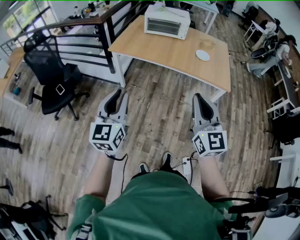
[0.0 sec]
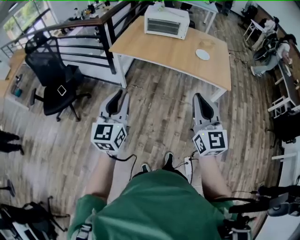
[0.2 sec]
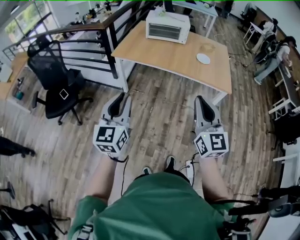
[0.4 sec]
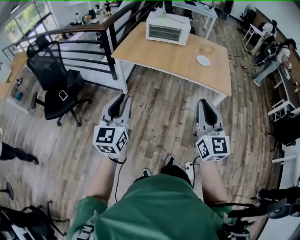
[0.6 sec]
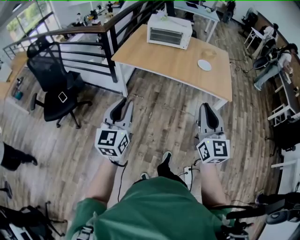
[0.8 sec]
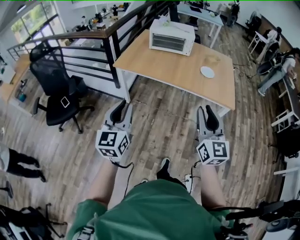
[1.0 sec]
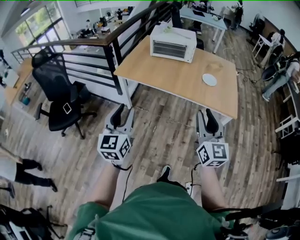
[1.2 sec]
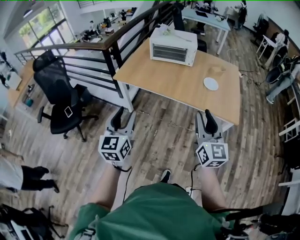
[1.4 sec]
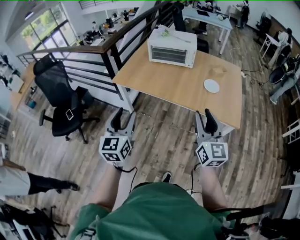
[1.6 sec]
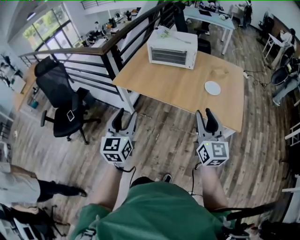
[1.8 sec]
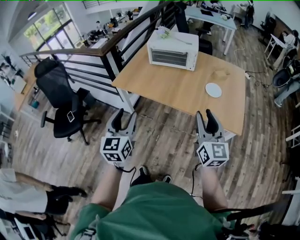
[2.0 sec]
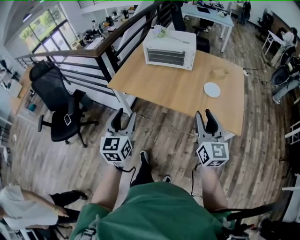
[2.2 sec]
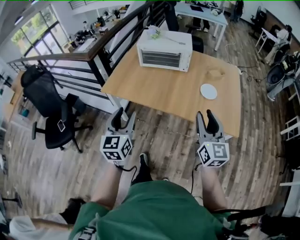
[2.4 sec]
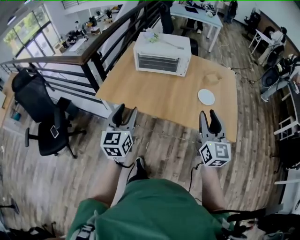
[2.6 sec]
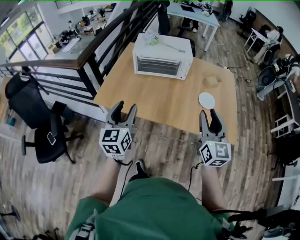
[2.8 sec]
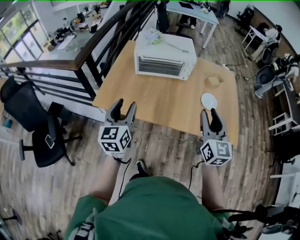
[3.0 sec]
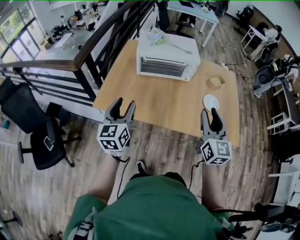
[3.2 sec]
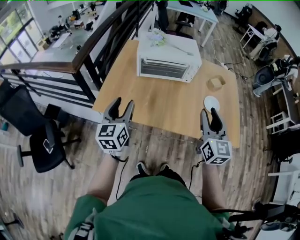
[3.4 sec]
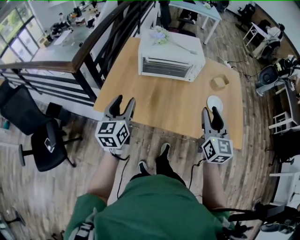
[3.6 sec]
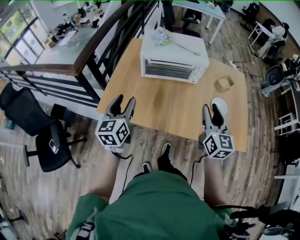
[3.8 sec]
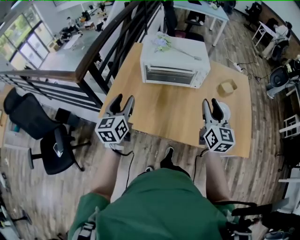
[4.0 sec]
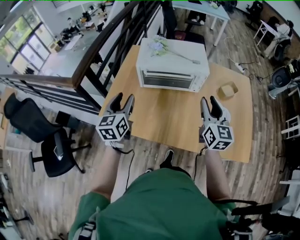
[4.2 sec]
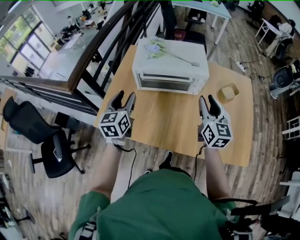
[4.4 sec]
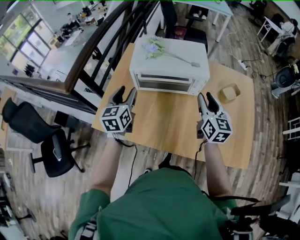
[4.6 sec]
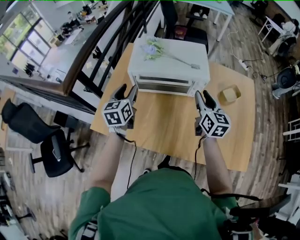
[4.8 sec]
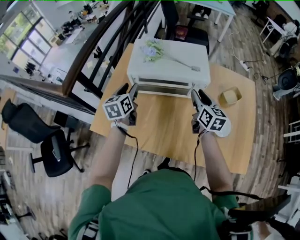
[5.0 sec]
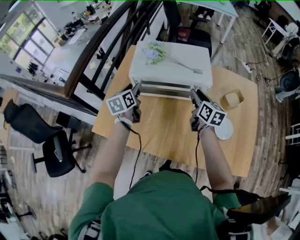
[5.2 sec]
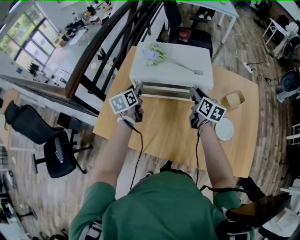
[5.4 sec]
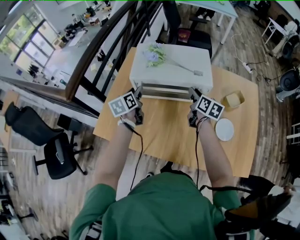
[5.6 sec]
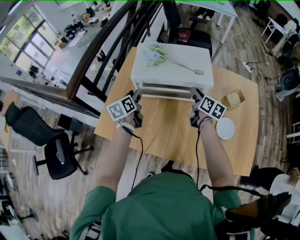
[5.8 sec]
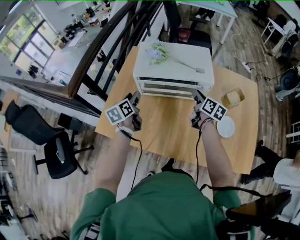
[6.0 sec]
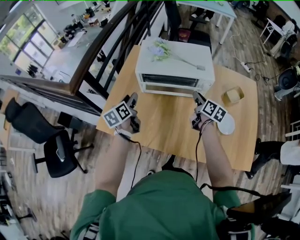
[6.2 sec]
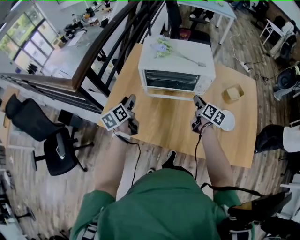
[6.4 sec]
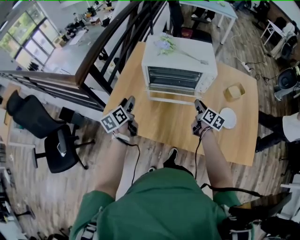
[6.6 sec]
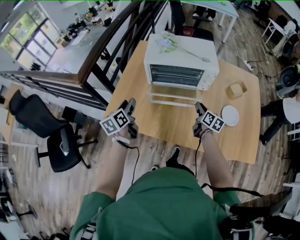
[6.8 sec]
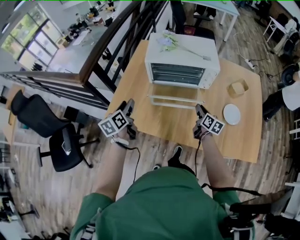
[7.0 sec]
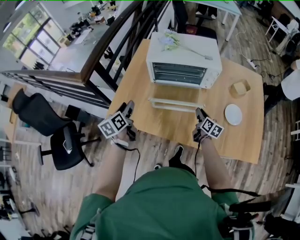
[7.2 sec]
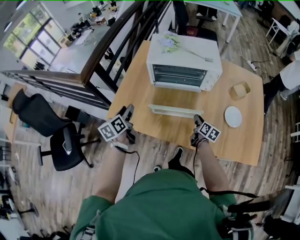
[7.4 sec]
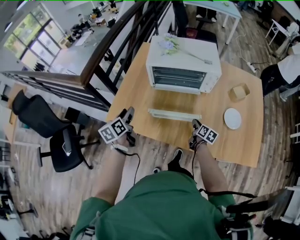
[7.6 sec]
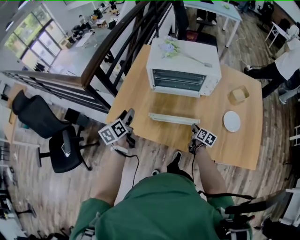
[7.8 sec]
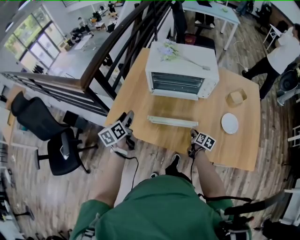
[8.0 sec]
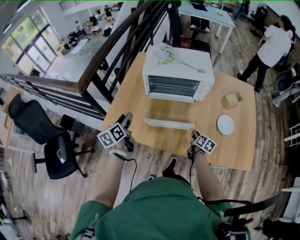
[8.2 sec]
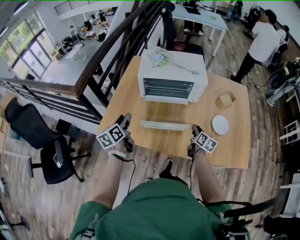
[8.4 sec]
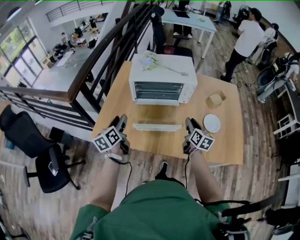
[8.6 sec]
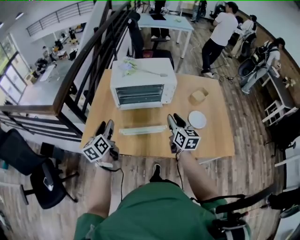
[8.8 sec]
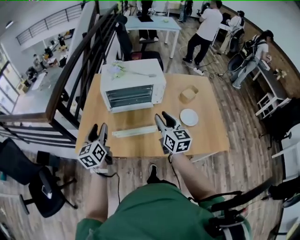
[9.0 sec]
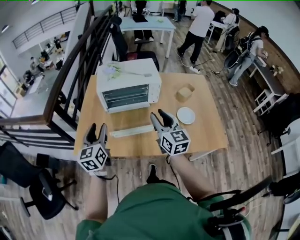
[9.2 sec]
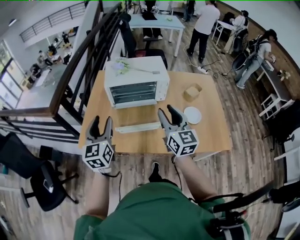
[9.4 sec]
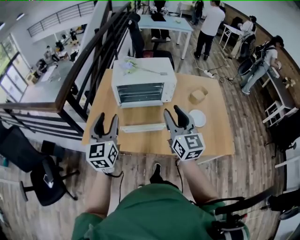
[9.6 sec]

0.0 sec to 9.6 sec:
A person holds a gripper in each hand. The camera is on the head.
0.0 sec to 1.6 sec: The right gripper goes roughly 25 cm forward and to the right, and opens up, while the left gripper moves forward, some 20 cm, and opens.
1.6 sec to 3.2 sec: Both grippers travel together forward, roughly 35 cm.
3.2 sec to 4.8 sec: Both grippers move forward, approximately 30 cm.
4.8 sec to 6.4 sec: The right gripper moves downward, some 10 cm, and changes its angle by about 30 degrees; the left gripper travels to the left, backward and downward by approximately 10 cm, and rotates some 30 degrees.
6.4 sec to 8.0 sec: The left gripper moves backward, some 10 cm; the right gripper shifts some 20 cm downward and backward.
8.0 sec to 9.6 sec: The right gripper moves upward, approximately 40 cm, and angles its fingers upward, by roughly 40 degrees, while the left gripper moves upward and to the right, about 20 cm, and rotates some 40 degrees.

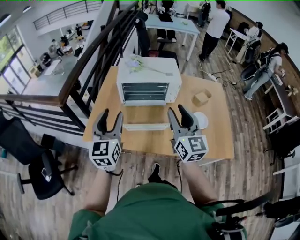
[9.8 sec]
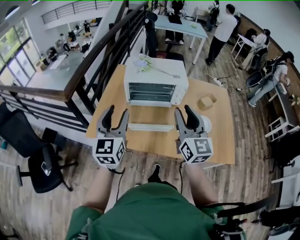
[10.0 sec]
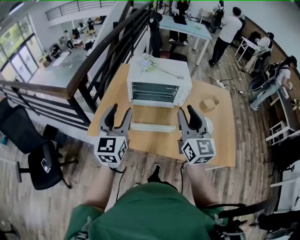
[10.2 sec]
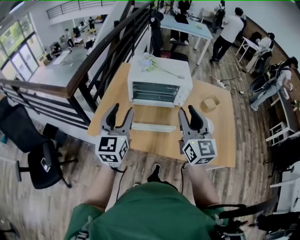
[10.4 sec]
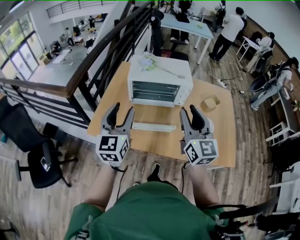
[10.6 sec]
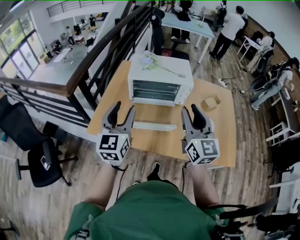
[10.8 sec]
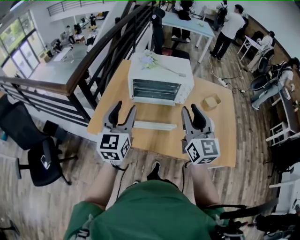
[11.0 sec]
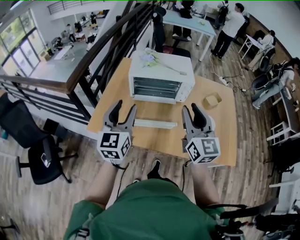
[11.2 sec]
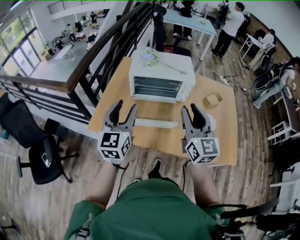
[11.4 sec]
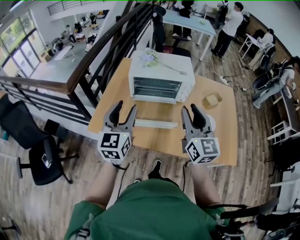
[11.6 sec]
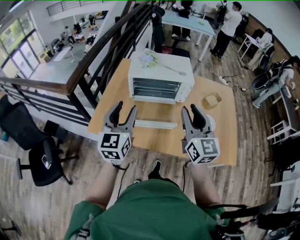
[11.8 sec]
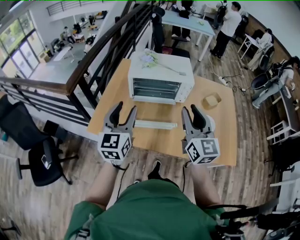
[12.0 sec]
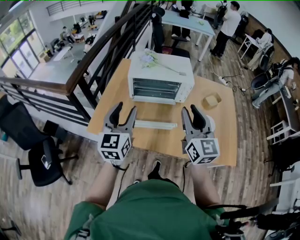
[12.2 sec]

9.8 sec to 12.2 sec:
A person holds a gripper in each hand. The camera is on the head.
9.8 sec to 11.0 sec: There are only small adjustments of the grippers.
11.0 sec to 12.2 sec: Neither gripper changes place.

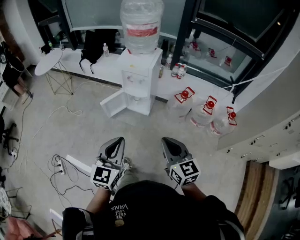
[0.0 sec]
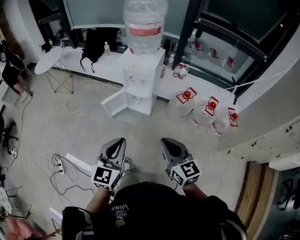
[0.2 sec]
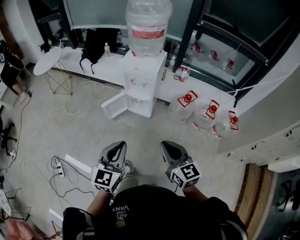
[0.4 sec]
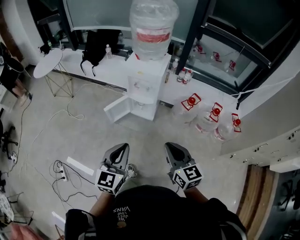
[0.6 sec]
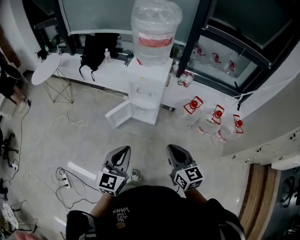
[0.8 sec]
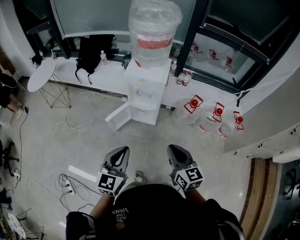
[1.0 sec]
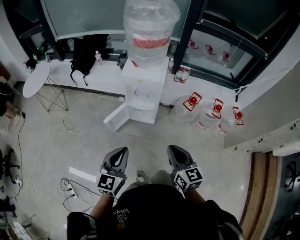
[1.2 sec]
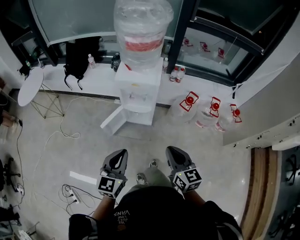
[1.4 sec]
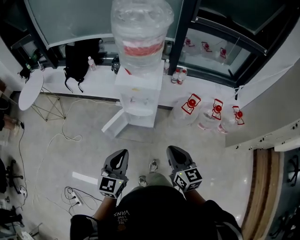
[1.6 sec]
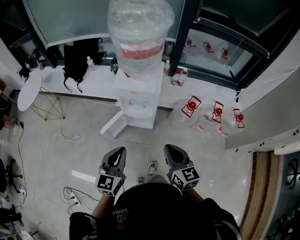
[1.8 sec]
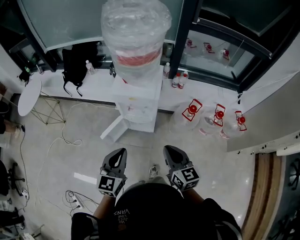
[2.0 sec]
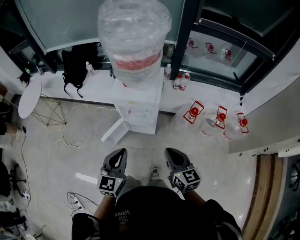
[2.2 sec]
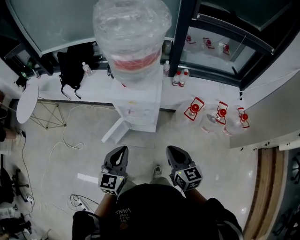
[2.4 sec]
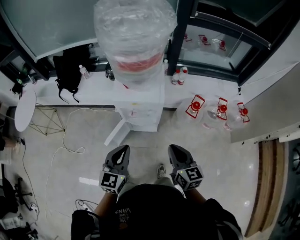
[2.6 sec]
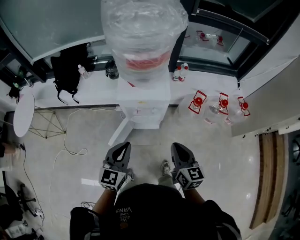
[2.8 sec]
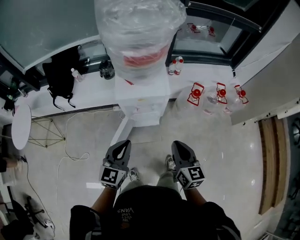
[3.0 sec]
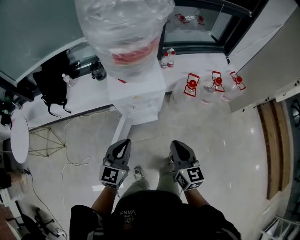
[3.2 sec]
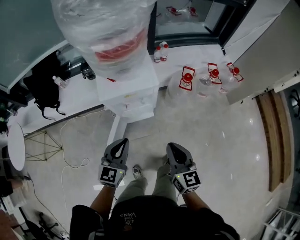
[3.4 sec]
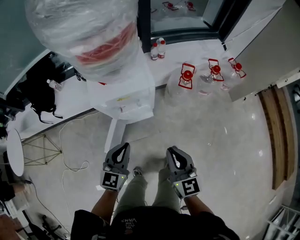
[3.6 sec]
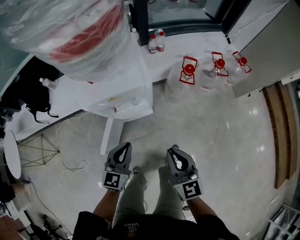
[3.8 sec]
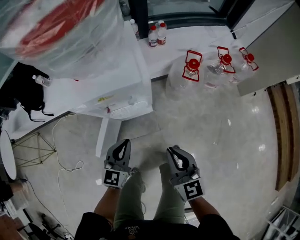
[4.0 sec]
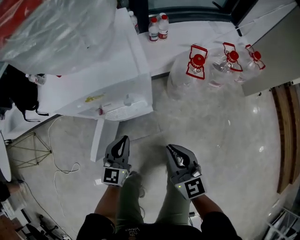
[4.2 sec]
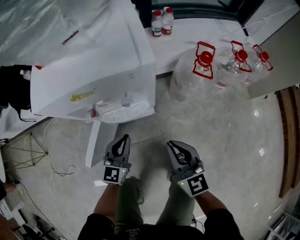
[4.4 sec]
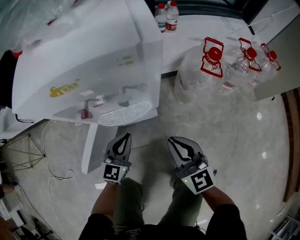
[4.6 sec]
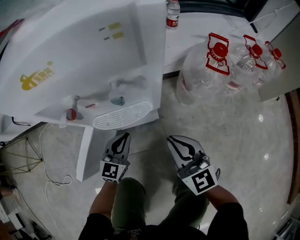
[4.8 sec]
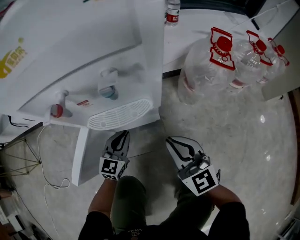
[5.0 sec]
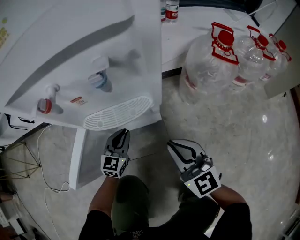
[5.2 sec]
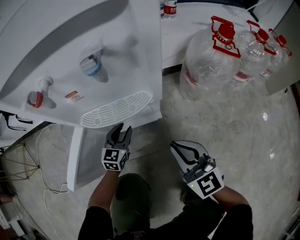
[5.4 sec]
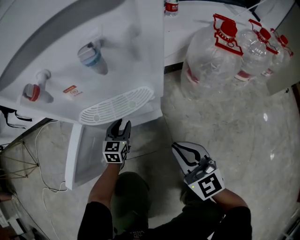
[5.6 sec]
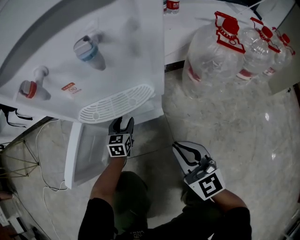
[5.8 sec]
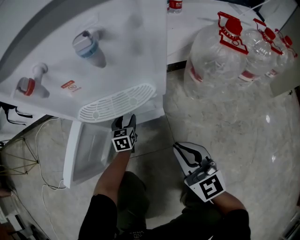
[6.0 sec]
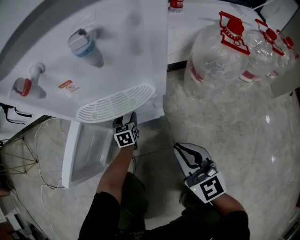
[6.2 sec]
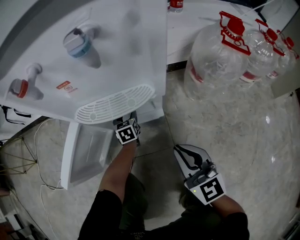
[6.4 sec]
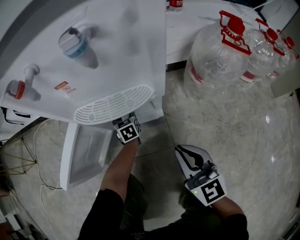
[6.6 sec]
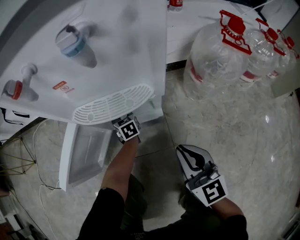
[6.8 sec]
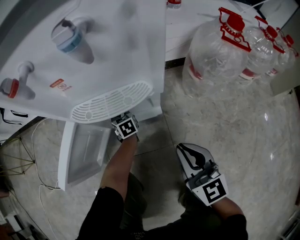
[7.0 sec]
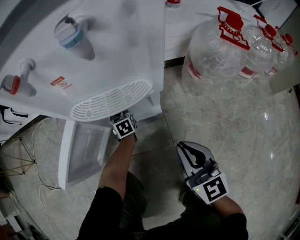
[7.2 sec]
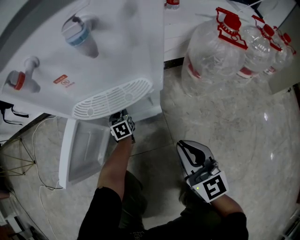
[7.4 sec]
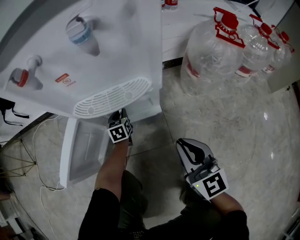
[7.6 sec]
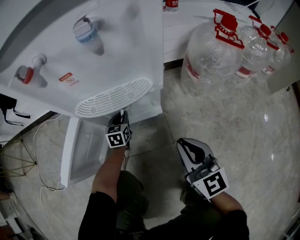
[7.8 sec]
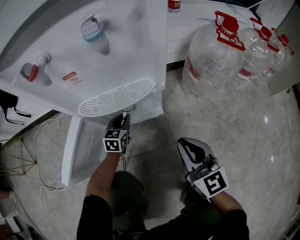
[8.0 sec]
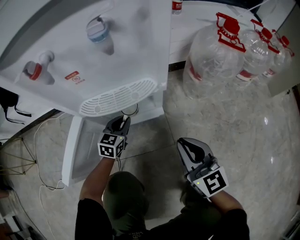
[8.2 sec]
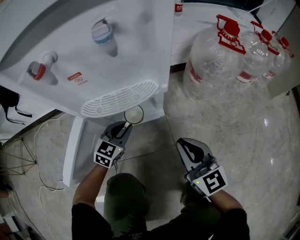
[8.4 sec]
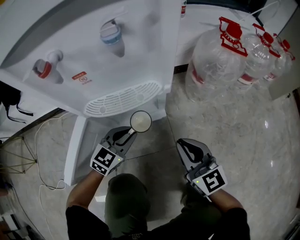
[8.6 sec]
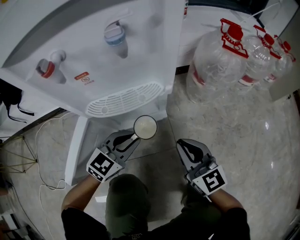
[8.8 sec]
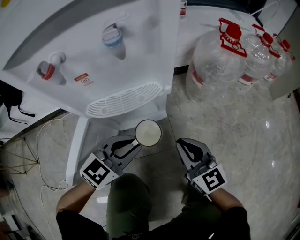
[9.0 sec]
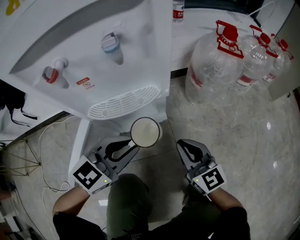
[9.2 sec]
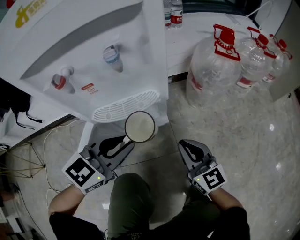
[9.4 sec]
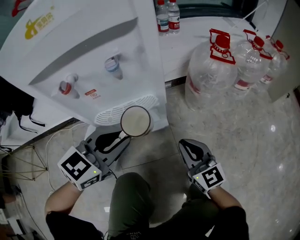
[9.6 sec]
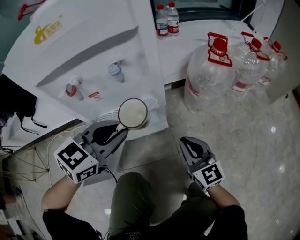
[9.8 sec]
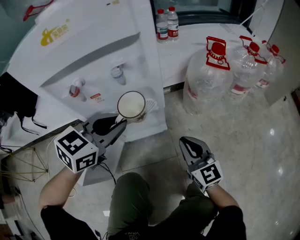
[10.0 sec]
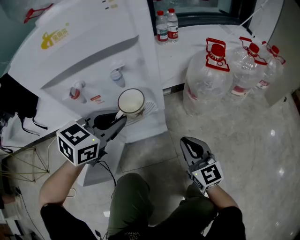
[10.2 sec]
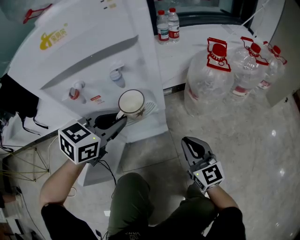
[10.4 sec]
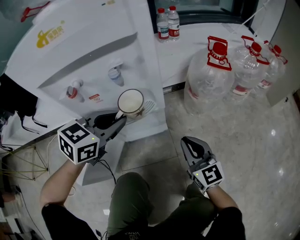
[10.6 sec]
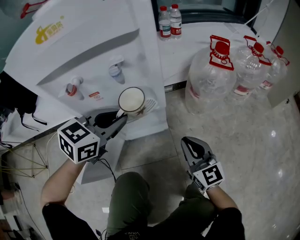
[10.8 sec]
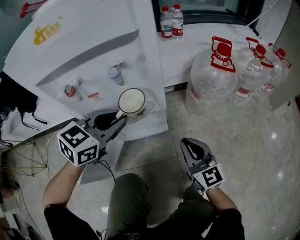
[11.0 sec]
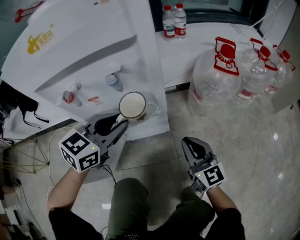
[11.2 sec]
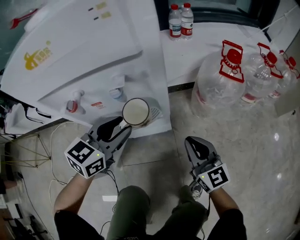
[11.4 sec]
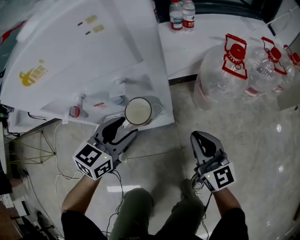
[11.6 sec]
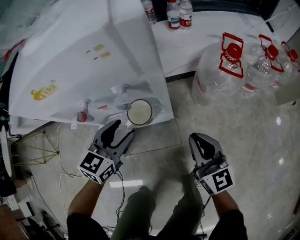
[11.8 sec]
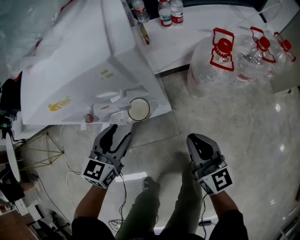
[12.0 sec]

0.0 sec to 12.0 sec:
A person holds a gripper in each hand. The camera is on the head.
0.0 sec to 1.6 sec: Both grippers move forward and to the left, roughly 25 cm.
1.6 sec to 3.0 sec: The two grippers go about 20 cm forward and to the left. The right gripper swivels some 20 degrees.
3.0 sec to 4.4 sec: Both grippers move downward, some 40 cm.
4.4 sec to 6.0 sec: The left gripper heads downward, covering approximately 40 cm, changes its angle by about 30 degrees, and opens; the right gripper shifts some 25 cm downward.
6.0 sec to 7.6 sec: The left gripper closes up.
7.6 sec to 9.0 sec: The left gripper goes some 25 cm upward, and turns by some 60 degrees.
9.0 sec to 10.4 sec: The right gripper ends up about 5 cm from where it was. Meanwhile the left gripper shifts some 15 cm upward and forward.
10.4 sec to 12.0 sec: The right gripper is displaced upward by some 15 cm. The left gripper moves upward, some 5 cm, turns by roughly 20 degrees, and opens its fingers.
